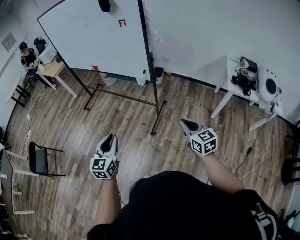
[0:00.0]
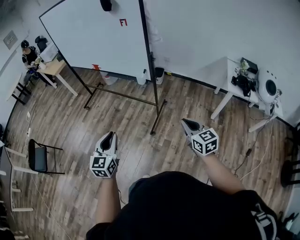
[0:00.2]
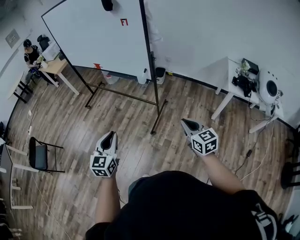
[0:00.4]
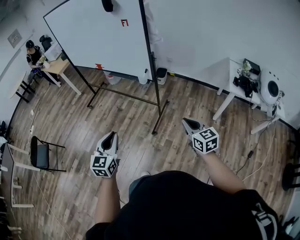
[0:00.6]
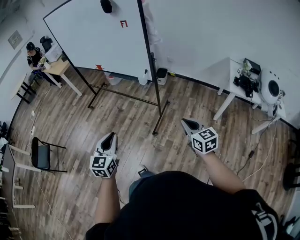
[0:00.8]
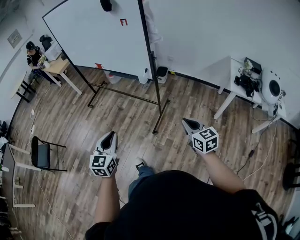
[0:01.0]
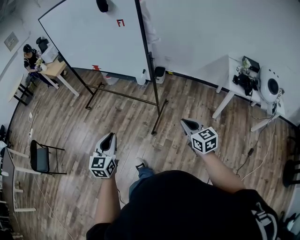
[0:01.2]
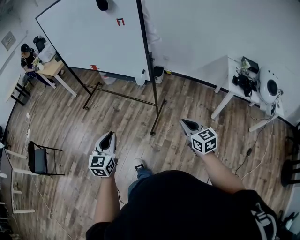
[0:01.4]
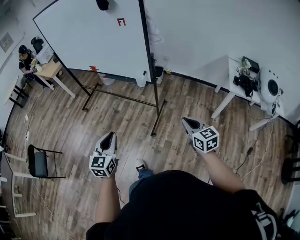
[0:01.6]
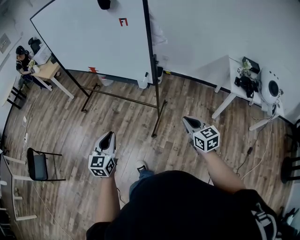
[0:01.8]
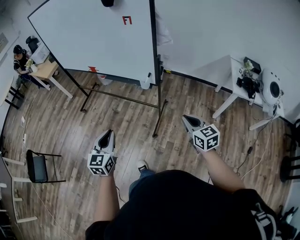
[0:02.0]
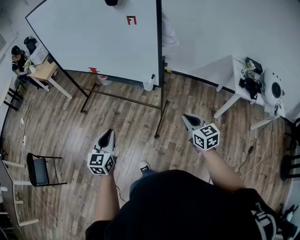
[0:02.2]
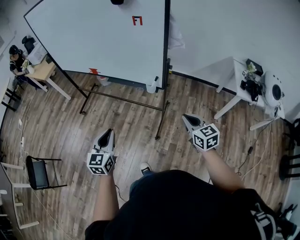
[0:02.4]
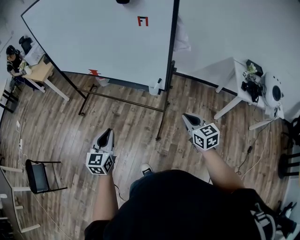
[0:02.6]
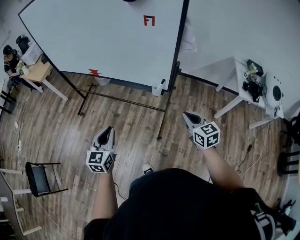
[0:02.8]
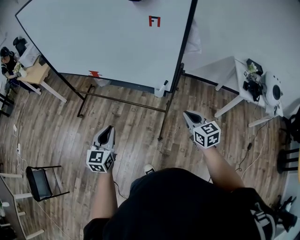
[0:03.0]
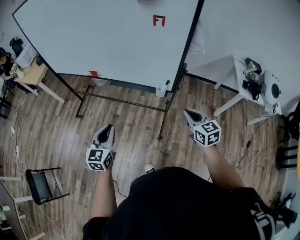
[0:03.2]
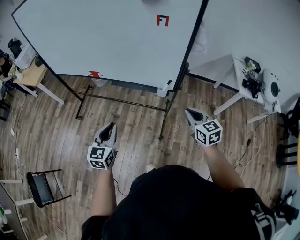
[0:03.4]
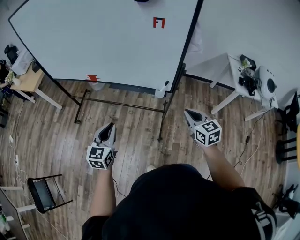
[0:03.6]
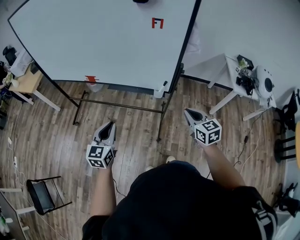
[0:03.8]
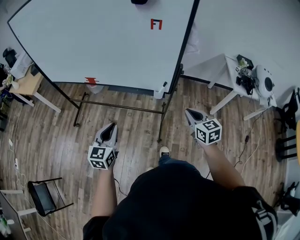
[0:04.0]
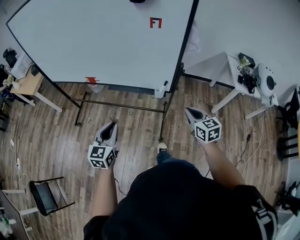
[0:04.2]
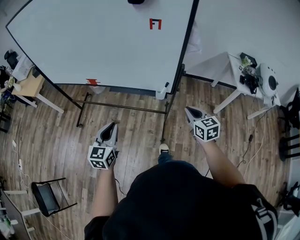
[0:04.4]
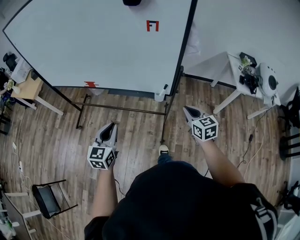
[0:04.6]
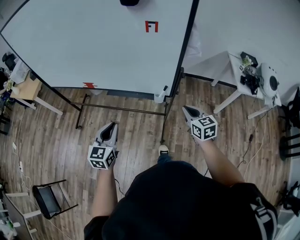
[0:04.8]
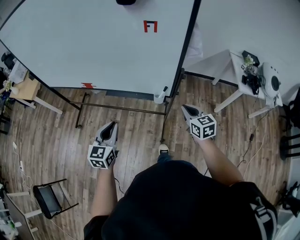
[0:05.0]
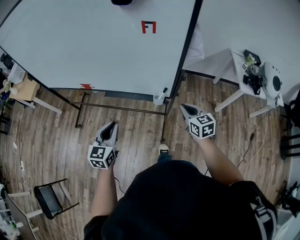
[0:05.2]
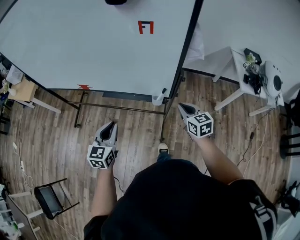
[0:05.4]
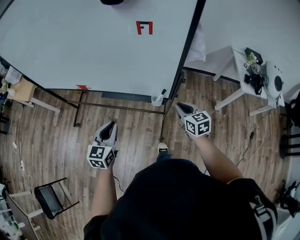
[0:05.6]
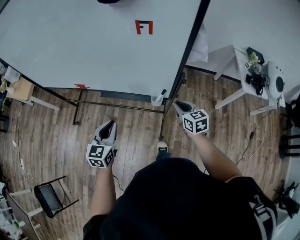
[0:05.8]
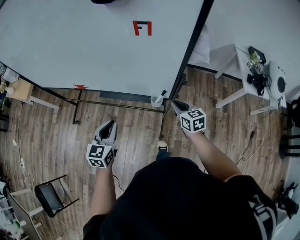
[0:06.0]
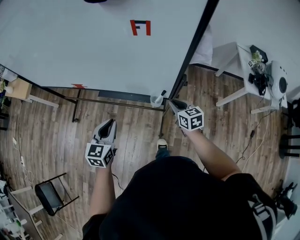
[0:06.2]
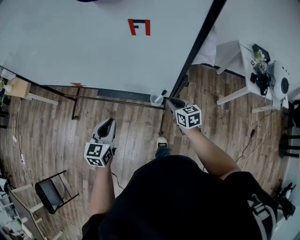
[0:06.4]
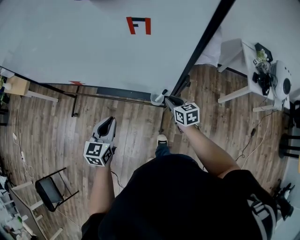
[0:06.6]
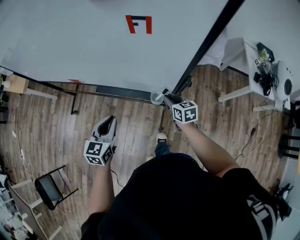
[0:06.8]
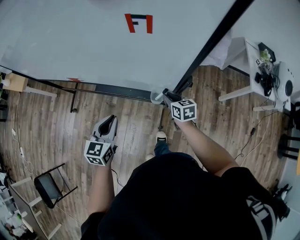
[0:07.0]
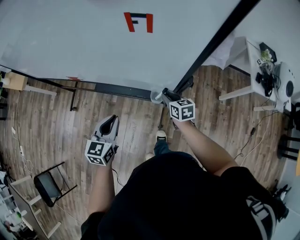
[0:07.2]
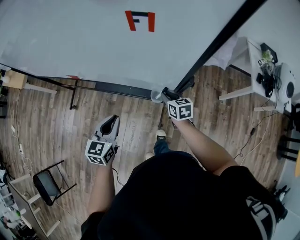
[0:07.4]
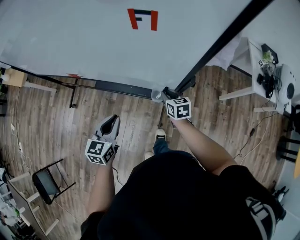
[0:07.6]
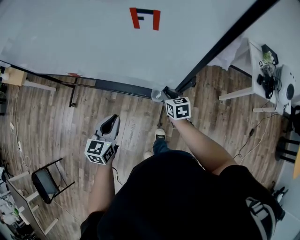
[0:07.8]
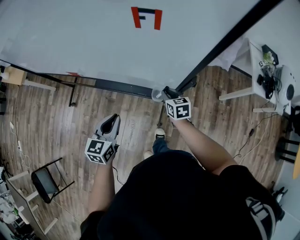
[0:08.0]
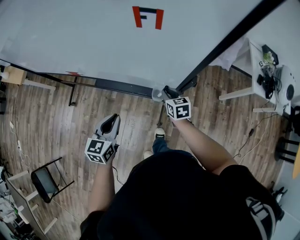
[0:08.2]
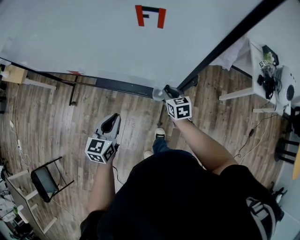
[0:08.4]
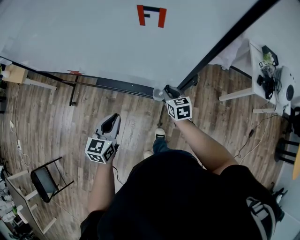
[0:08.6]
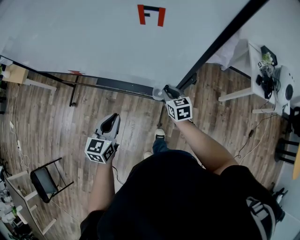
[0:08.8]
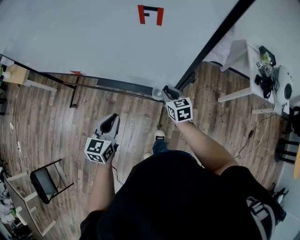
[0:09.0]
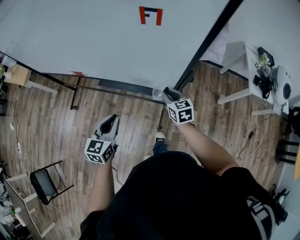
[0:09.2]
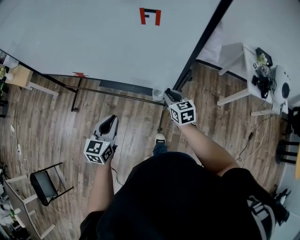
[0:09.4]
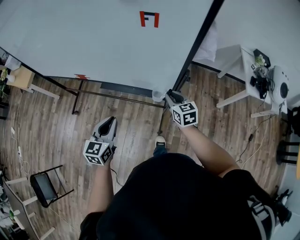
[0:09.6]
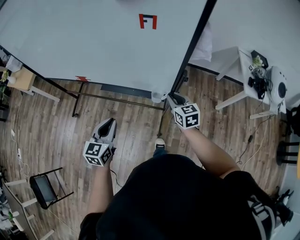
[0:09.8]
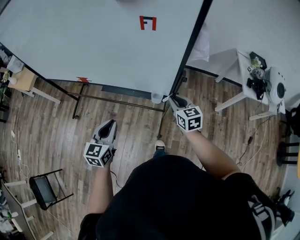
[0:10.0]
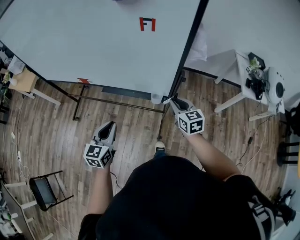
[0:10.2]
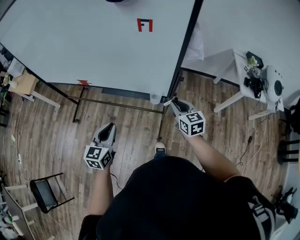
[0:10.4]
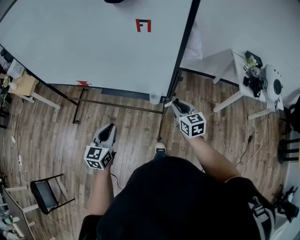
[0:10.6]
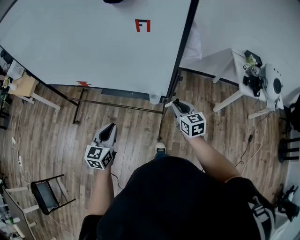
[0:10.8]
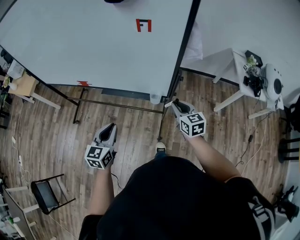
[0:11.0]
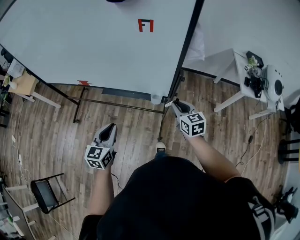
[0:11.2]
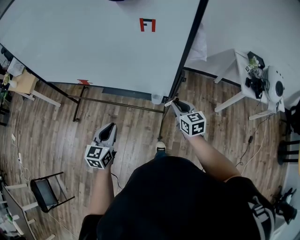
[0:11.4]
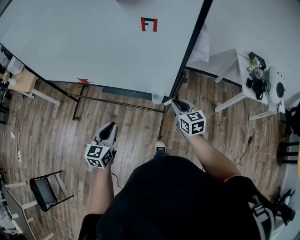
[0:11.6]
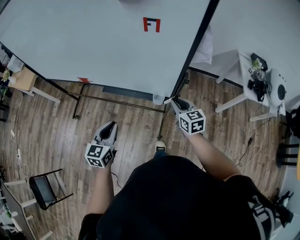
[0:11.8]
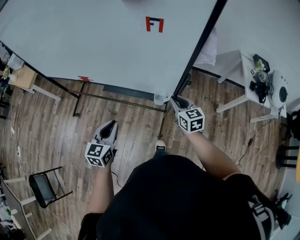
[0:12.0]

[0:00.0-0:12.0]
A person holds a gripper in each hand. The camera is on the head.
0:00.0 to 0:01.6: The right gripper ends up approximately 5 cm from where it was. The left gripper heads forward, covering roughly 5 cm.
0:01.6 to 0:03.0: The grippers both shift forward and to the left by some 30 cm.
0:03.0 to 0:04.4: The left gripper moves forward, some 5 cm.
0:04.4 to 0:06.0: The left gripper heads forward, covering roughly 15 cm. The right gripper shifts roughly 20 cm forward and downward.
0:06.0 to 0:07.6: The right gripper shifts about 15 cm downward and forward. The left gripper shifts by some 5 cm.
0:07.6 to 0:09.0: The right gripper ends up approximately 5 cm from where it was.
0:09.0 to 0:10.4: The left gripper moves backward, about 10 cm; the right gripper goes roughly 15 cm upward and backward.
0:10.4 to 0:12.0: The right gripper travels forward by some 5 cm.

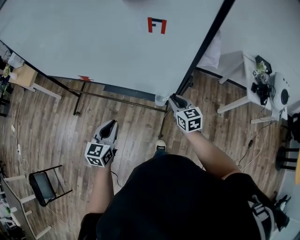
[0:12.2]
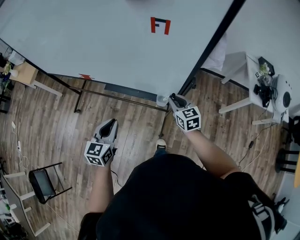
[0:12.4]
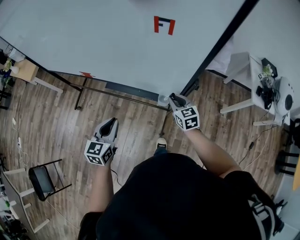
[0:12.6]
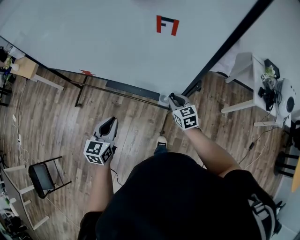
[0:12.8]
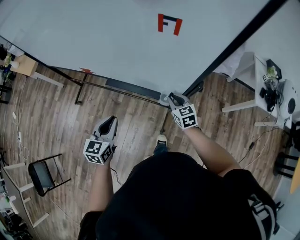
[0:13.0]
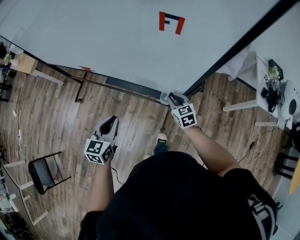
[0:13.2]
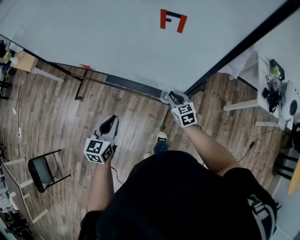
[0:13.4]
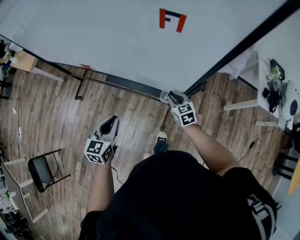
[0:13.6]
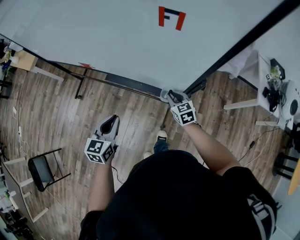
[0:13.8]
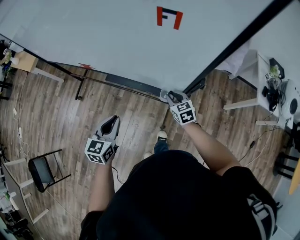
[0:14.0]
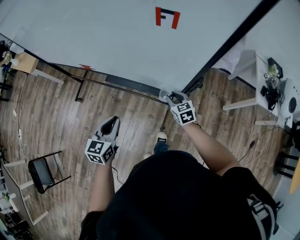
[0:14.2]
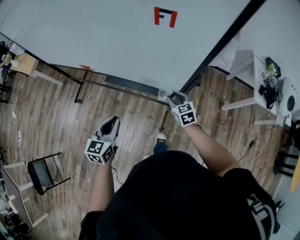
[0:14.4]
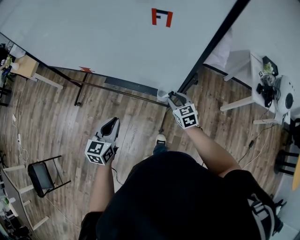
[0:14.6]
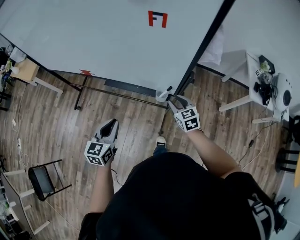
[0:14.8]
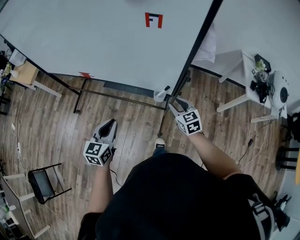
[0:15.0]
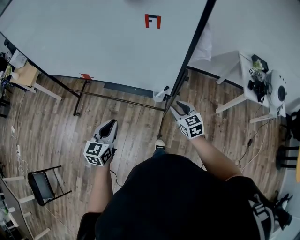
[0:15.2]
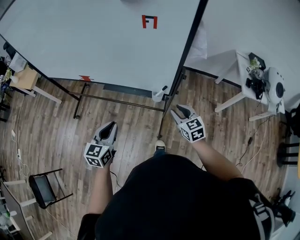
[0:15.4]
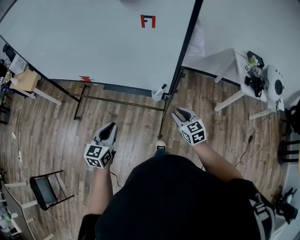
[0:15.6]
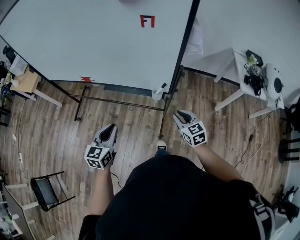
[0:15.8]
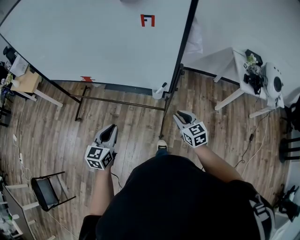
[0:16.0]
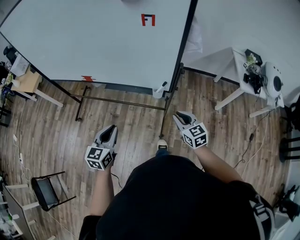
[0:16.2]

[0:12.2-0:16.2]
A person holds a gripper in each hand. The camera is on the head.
0:12.2 to 0:13.6: The right gripper shifts some 10 cm downward.
0:13.6 to 0:14.8: The right gripper shifts about 10 cm upward and backward, and opens up. Meanwhile the left gripper moves approximately 5 cm.
0:14.8 to 0:16.2: The left gripper shifts roughly 10 cm backward. The right gripper heads backward, covering approximately 15 cm, and closes its fingers.

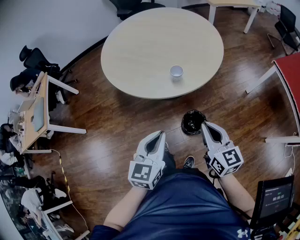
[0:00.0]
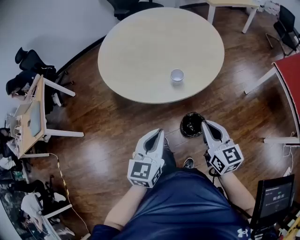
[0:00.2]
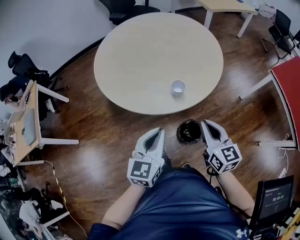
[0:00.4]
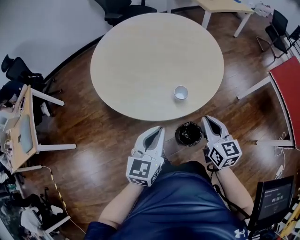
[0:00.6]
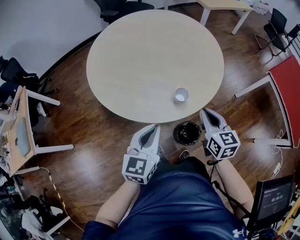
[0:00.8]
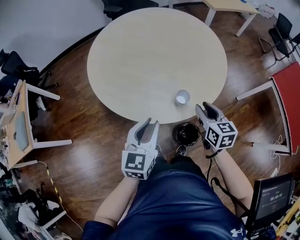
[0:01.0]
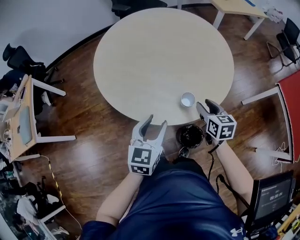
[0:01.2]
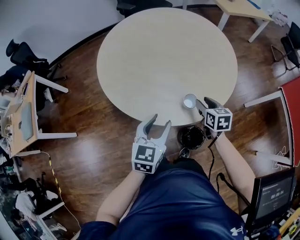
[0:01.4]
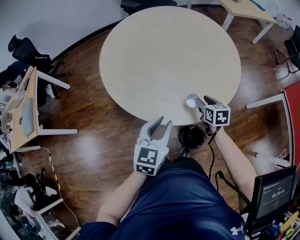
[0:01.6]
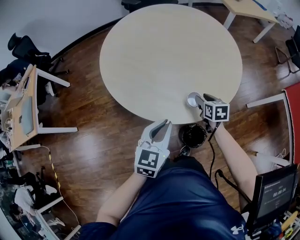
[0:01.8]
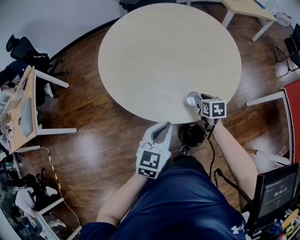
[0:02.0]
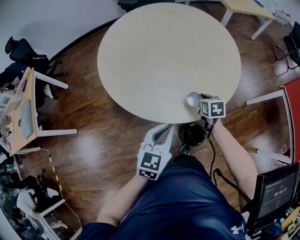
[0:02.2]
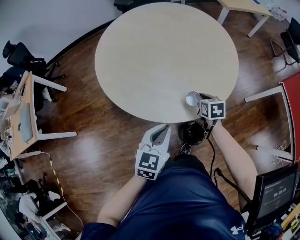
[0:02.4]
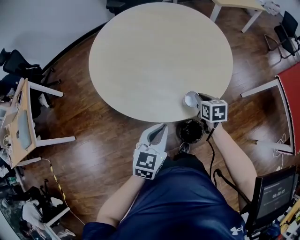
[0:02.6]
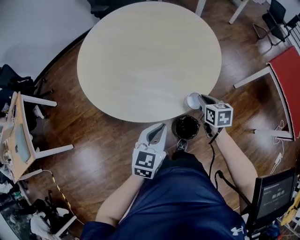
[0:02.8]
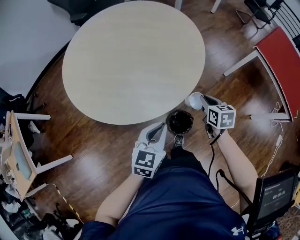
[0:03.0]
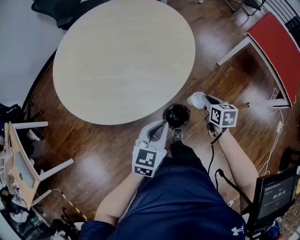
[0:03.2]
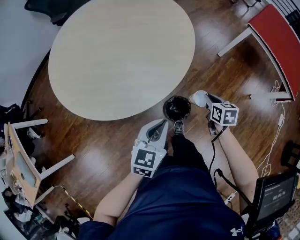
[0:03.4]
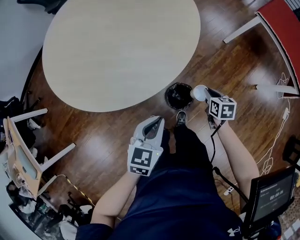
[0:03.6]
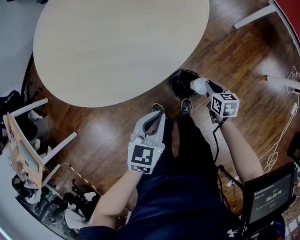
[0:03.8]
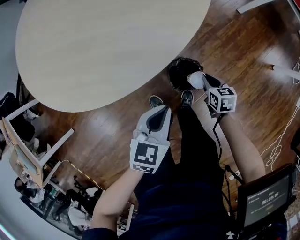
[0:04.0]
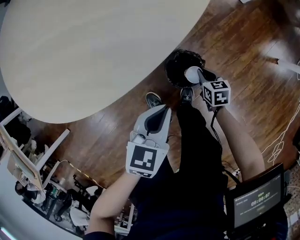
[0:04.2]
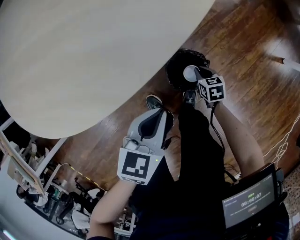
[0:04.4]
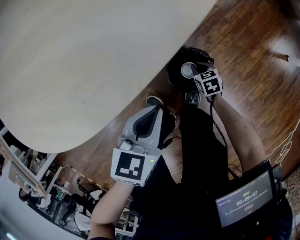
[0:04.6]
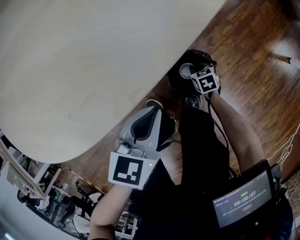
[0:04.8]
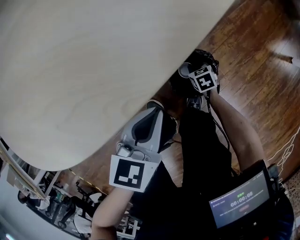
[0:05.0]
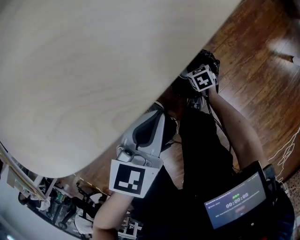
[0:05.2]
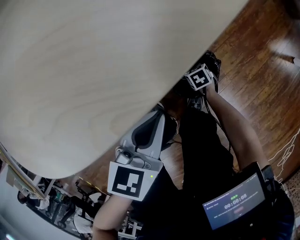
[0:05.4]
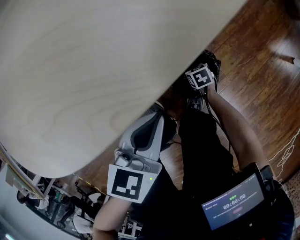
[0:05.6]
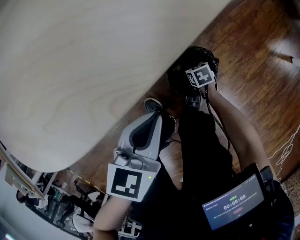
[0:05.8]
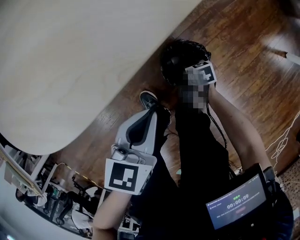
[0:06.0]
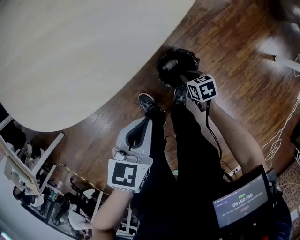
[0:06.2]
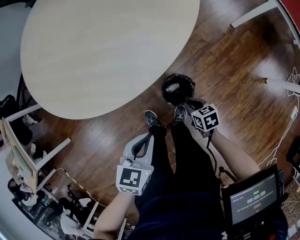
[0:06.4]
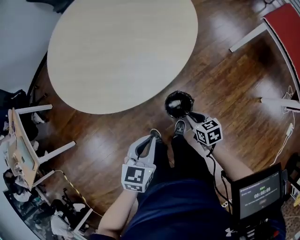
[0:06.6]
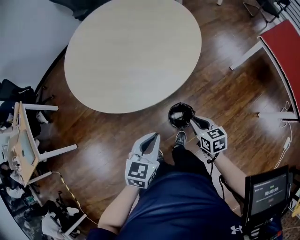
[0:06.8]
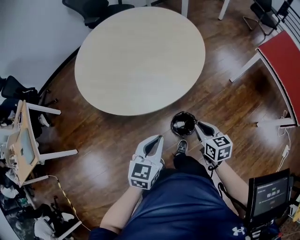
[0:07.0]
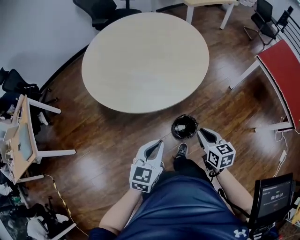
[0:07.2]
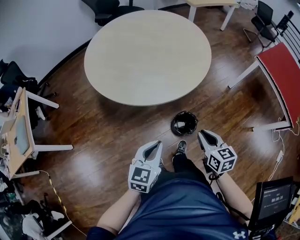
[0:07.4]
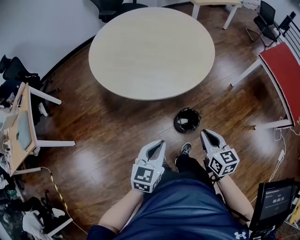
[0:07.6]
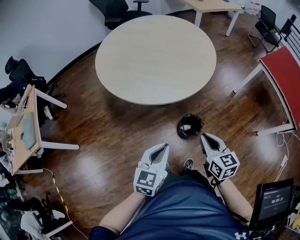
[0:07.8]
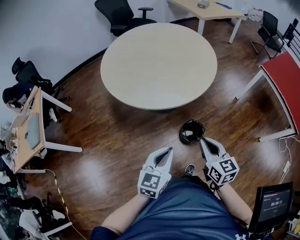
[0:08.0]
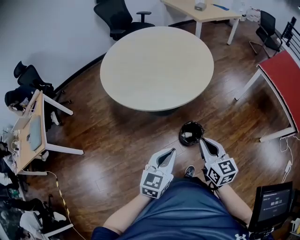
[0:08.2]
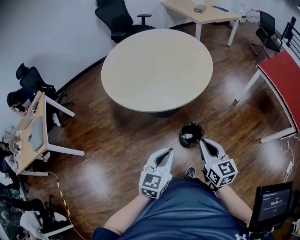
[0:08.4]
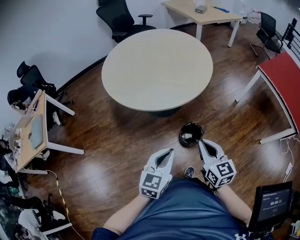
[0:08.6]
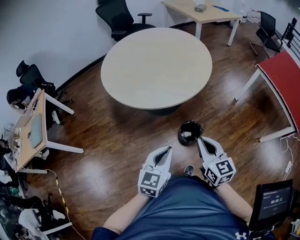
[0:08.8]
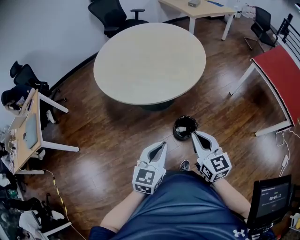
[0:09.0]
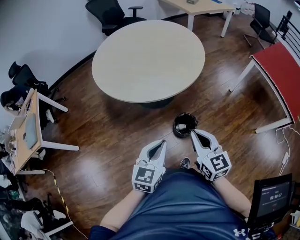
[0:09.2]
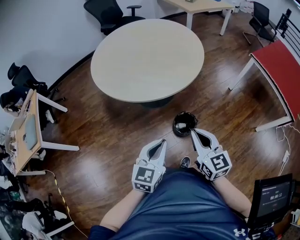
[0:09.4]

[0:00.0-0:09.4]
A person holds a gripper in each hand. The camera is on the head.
0:00.0 to 0:01.6: The left gripper travels forward by approximately 20 cm, and opens up, while the right gripper heads forward and downward, covering roughly 35 cm, angles its fingers downward, by about 30 degrees, and opens up.
0:01.6 to 0:03.2: The left gripper moves about 10 cm, changes its angle by about 30 degrees, and closes. The right gripper shifts by about 20 cm, turns by some 30 degrees, and closes.
0:03.2 to 0:04.8: The left gripper travels downward by about 30 cm, and swivels approximately 20 degrees; the right gripper shifts about 50 cm downward, and rotates some 30 degrees.
0:04.8 to 0:06.2: The right gripper goes some 15 cm upward; the left gripper shifts about 5 cm upward.
0:06.2 to 0:07.8: The left gripper is displaced upward and backward by roughly 25 cm, and turns by approximately 30 degrees. Meanwhile the right gripper is displaced upward by roughly 50 cm, and tips its fingers upward by some 40 degrees.
0:07.8 to 0:09.4: The right gripper goes about 5 cm upward. Meanwhile the left gripper moves about 5 cm.
